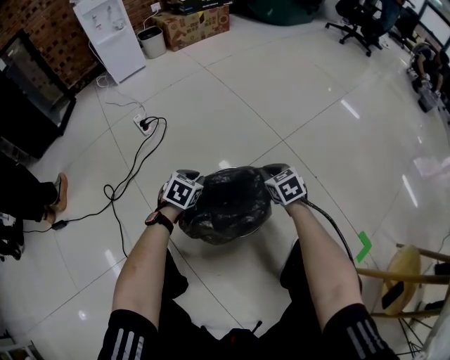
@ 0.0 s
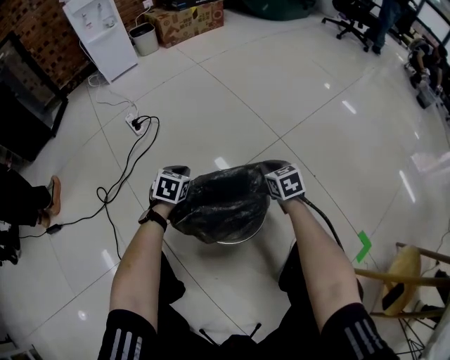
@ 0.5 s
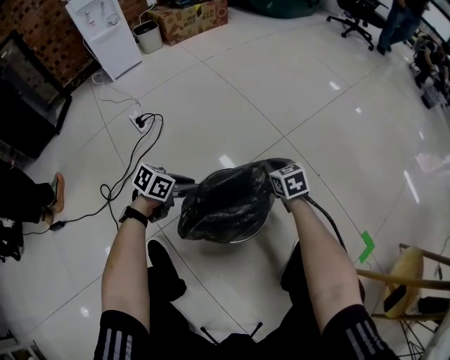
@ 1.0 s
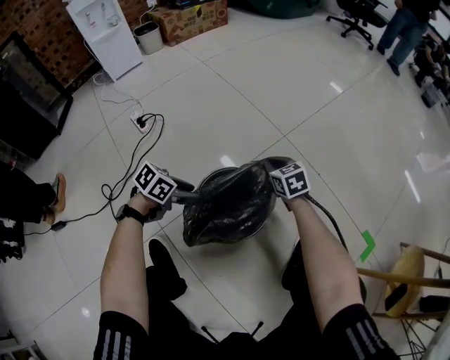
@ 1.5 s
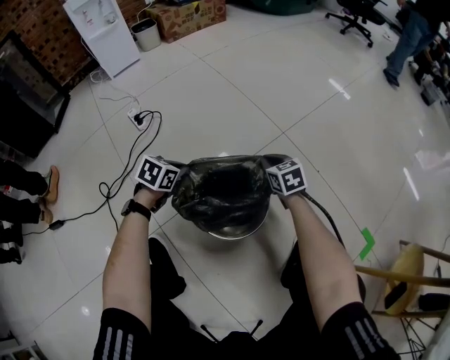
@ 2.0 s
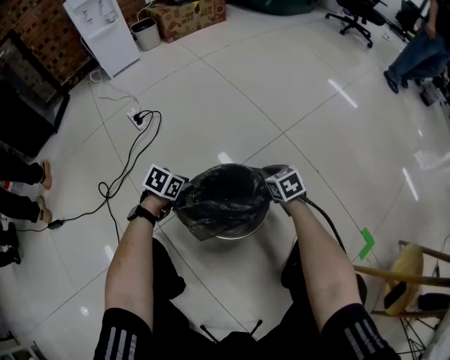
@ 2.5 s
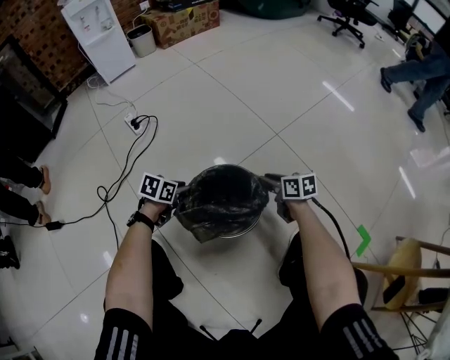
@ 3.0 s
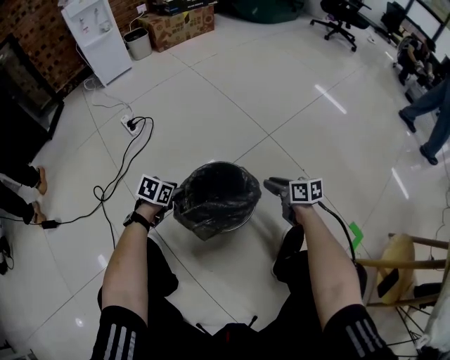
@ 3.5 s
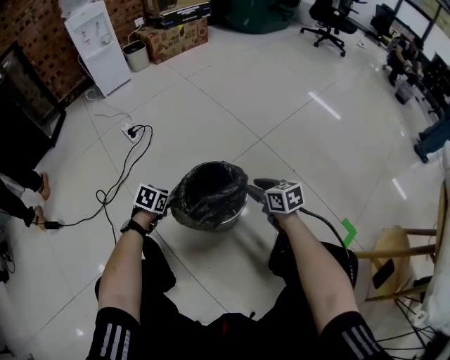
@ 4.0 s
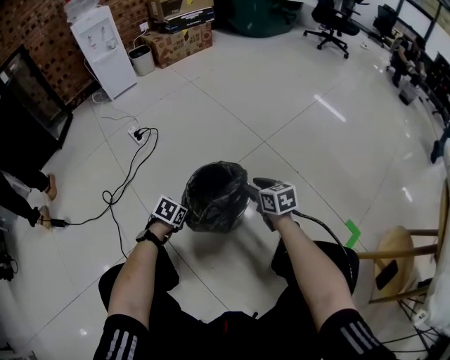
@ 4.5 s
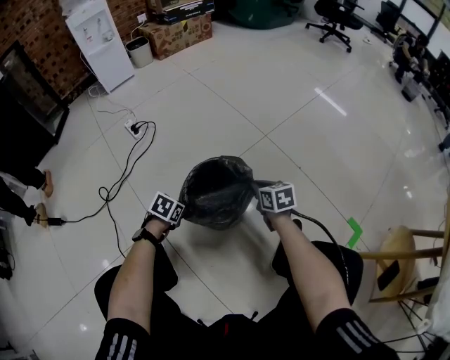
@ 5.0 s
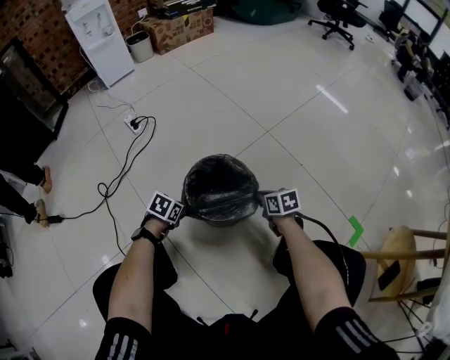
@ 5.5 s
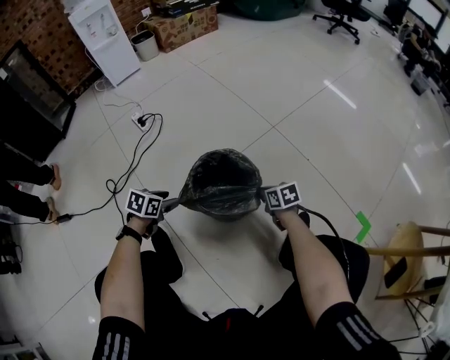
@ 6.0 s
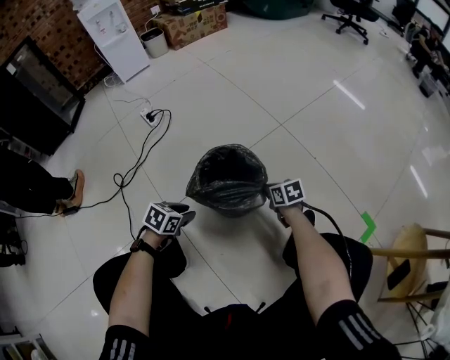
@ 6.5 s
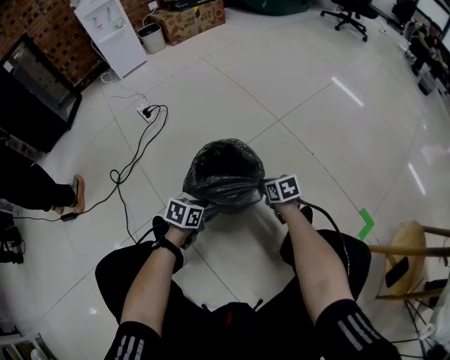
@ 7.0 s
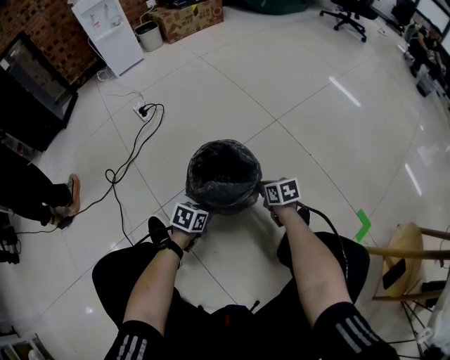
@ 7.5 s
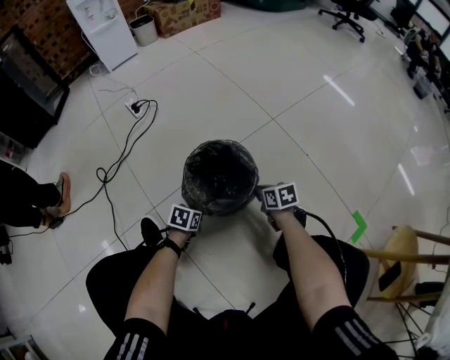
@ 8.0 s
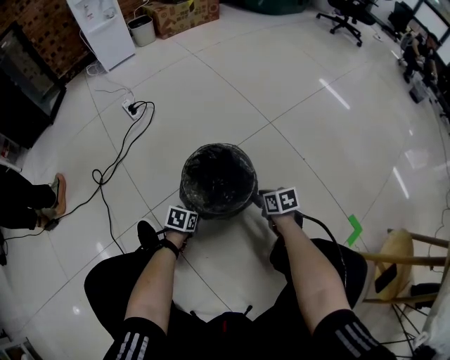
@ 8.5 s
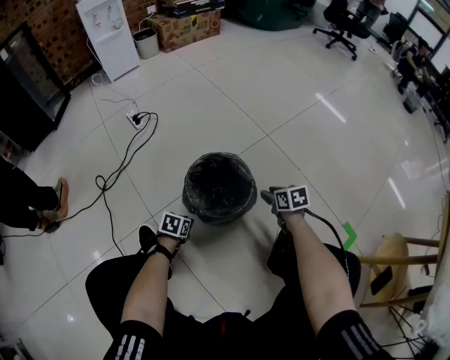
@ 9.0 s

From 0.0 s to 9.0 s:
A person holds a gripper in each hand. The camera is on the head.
From 0.0 s to 2.0 s: The left gripper opens and closes again.
From 2.0 s to 4.5 s: The right gripper goes approximately 15 cm backward and upward, and opens its fingers. Meanwhile the left gripper is displaced backward by some 15 cm, and opens up.
From 4.5 s to 7.0 s: The right gripper goes roughly 15 cm downward, and closes up. The left gripper is displaced to the right and backward by approximately 10 cm, and turns by approximately 20 degrees.
From 7.0 s to 9.0 s: The right gripper ends up approximately 5 cm from where it was, and opens up. The left gripper travels downward and to the left by approximately 10 cm, and closes its fingers.

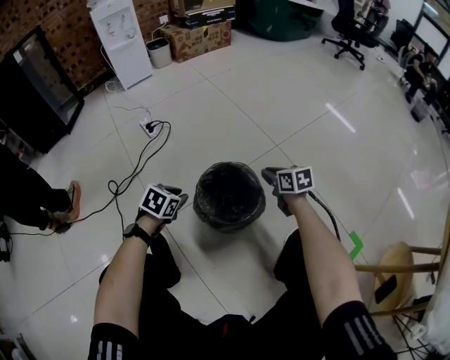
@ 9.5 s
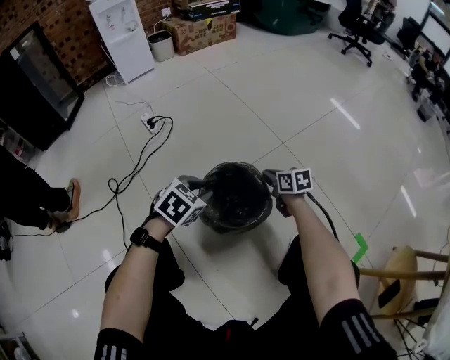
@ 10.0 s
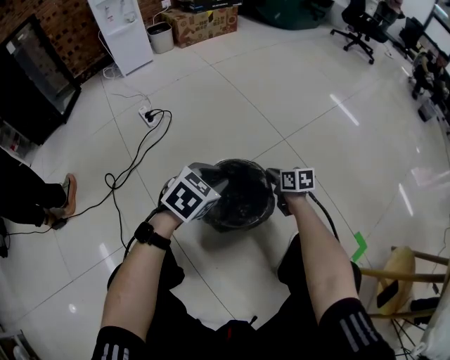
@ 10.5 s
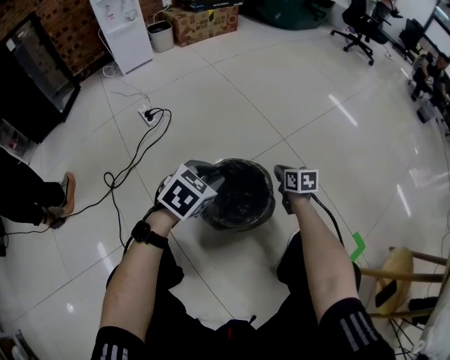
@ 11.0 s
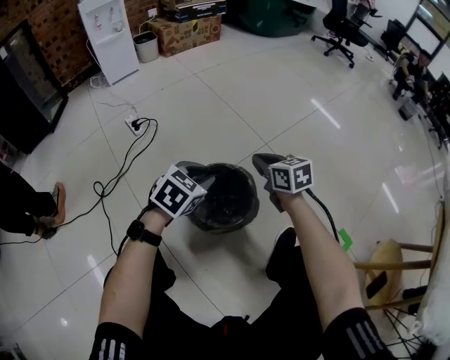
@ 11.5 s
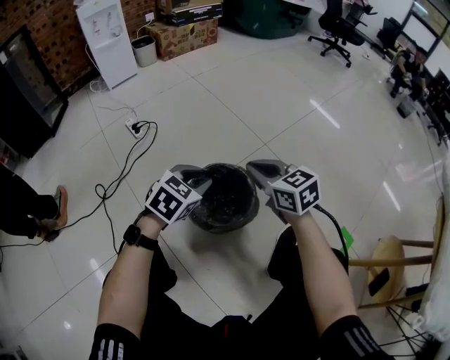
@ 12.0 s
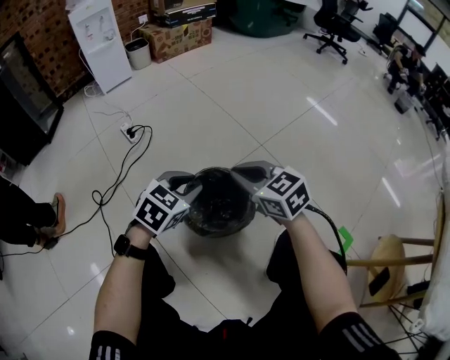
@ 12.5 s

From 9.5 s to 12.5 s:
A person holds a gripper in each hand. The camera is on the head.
From 9.5 s to 11.0 s: The right gripper travels downward by about 5 cm. Meanwhile the left gripper moves to the right and upward, roughly 15 cm.
From 11.0 s to 12.5 s: The right gripper goes approximately 30 cm upward, to the left and backward, and swivels roughly 40 degrees.

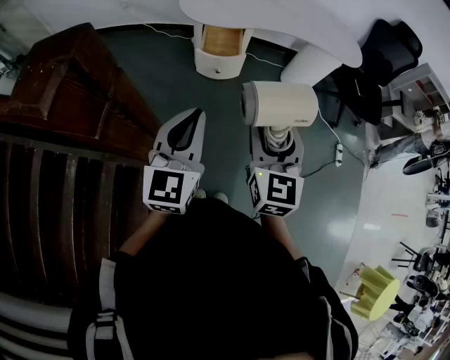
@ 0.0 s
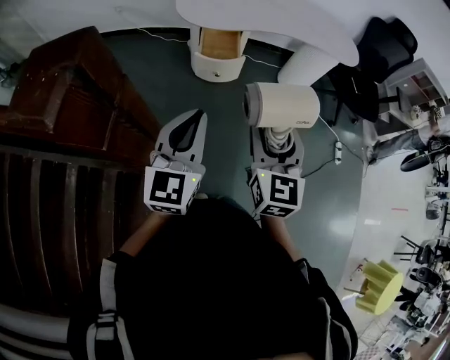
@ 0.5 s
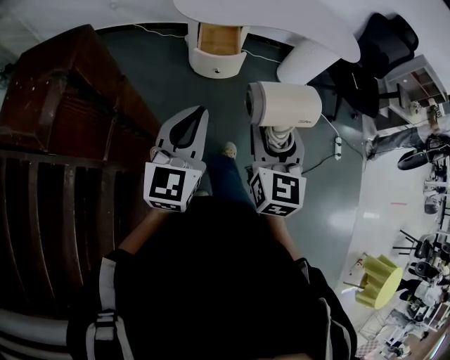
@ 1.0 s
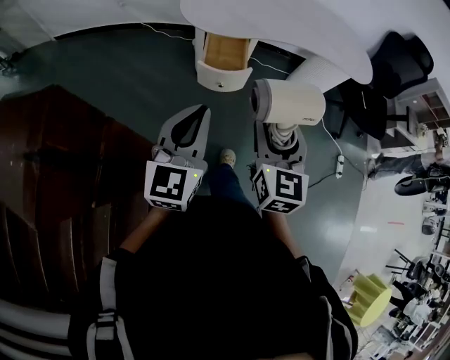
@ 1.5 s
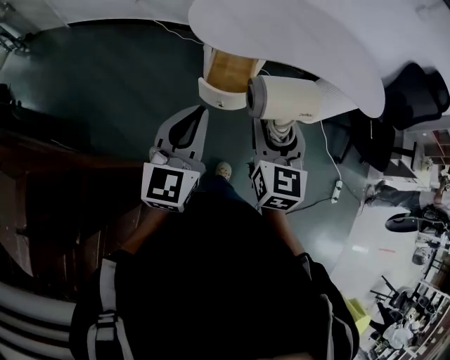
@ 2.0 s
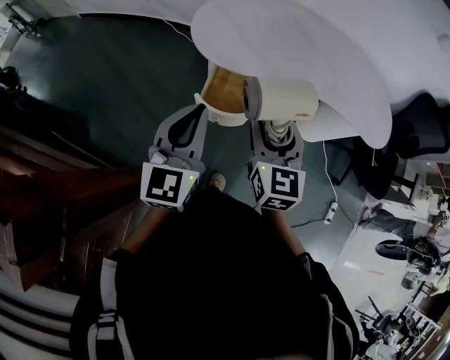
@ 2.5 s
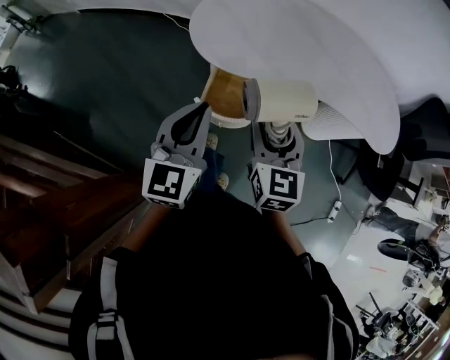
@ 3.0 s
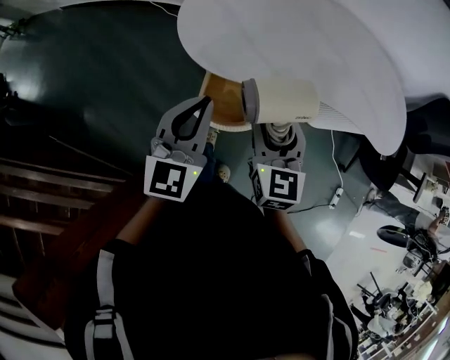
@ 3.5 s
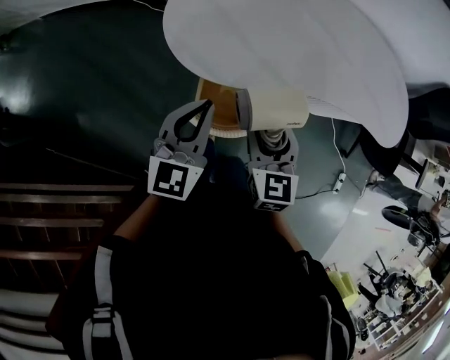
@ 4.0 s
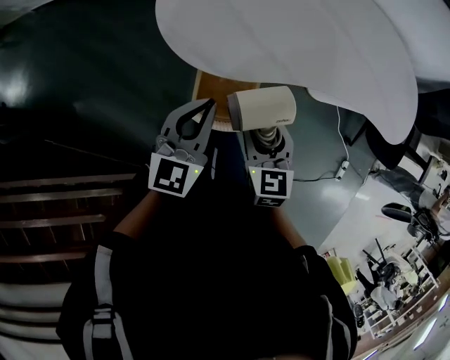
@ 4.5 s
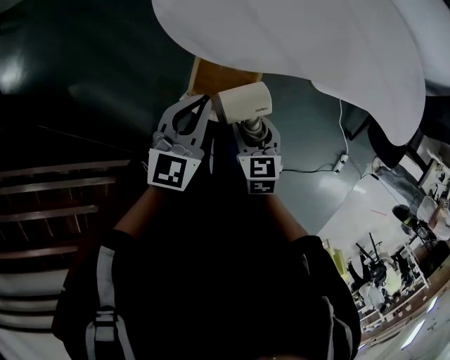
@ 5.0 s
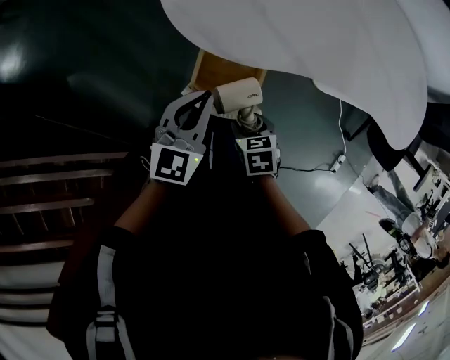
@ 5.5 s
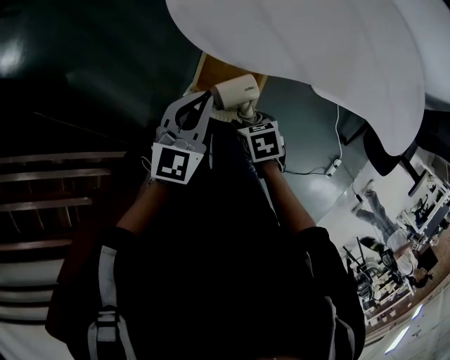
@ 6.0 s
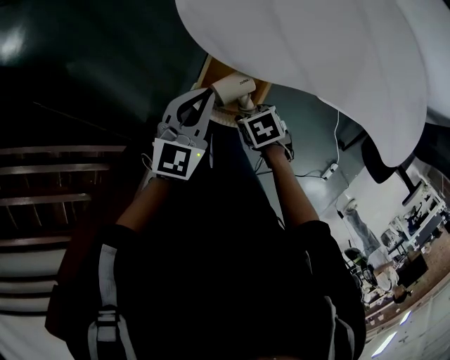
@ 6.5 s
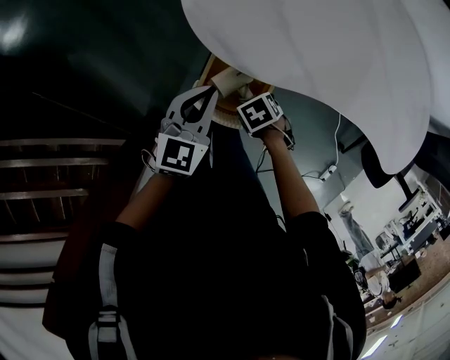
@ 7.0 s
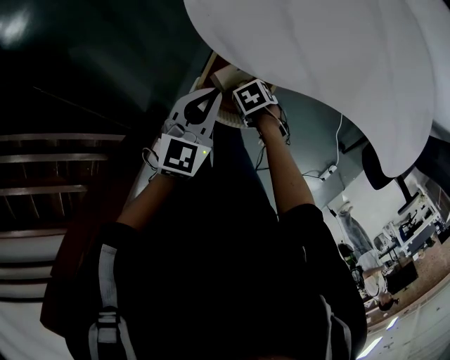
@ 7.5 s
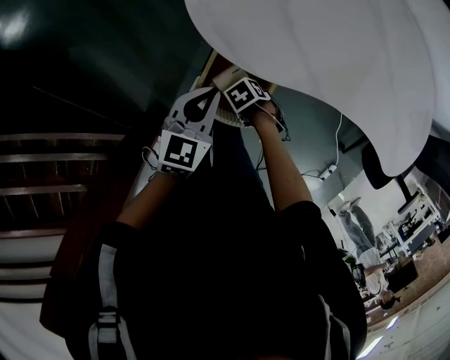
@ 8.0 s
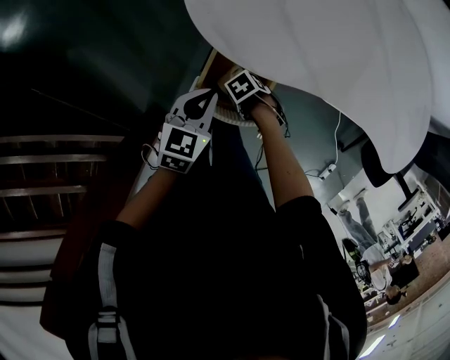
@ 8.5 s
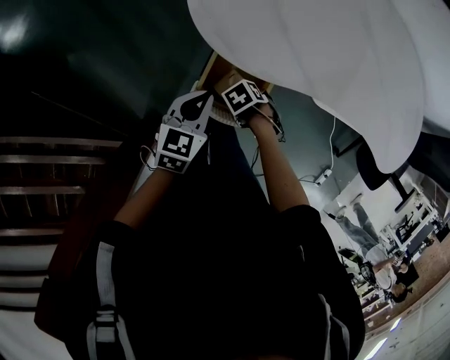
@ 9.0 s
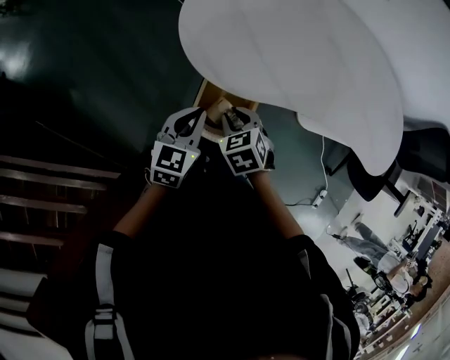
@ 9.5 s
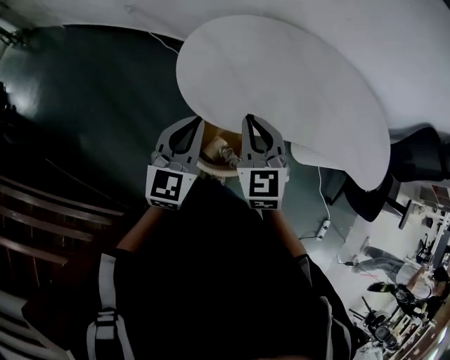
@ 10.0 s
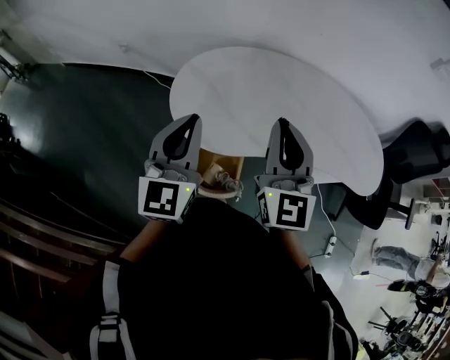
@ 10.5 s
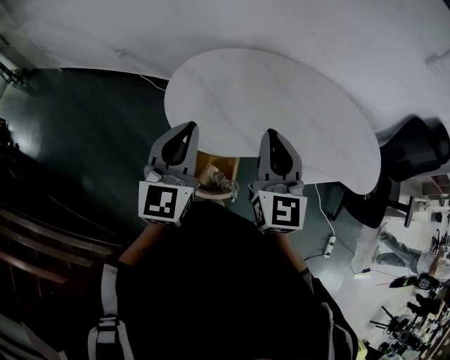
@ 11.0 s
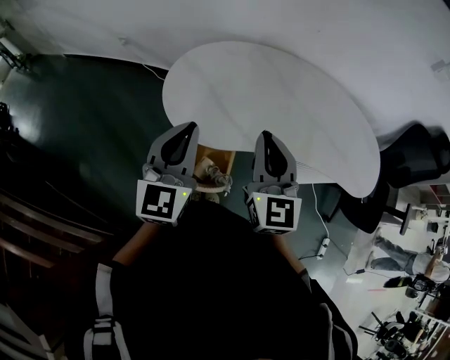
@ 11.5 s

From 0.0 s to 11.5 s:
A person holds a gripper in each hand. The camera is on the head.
From 0.0 s to 2.0 s: The grippers both shift forward by some 35 cm.
From 2.0 s to 4.0 s: The left gripper moves forward, approximately 40 cm, while the right gripper shifts roughly 35 cm forward and downward.
From 4.0 s to 6.0 s: The right gripper shifts about 25 cm downward, and tilts its fingers approximately 50 degrees downward, while the left gripper moves downward, roughly 15 cm.
From 6.0 s to 7.5 s: The right gripper travels downward by about 10 cm, and changes its angle by approximately 30 degrees. The left gripper goes roughly 5 cm downward.
From 7.5 s to 9.5 s: The right gripper is displaced upward by about 20 cm, swivels approximately 50 degrees, and closes its fingers; the left gripper heads upward, covering some 5 cm.
From 9.5 s to 11.5 s: The right gripper goes some 35 cm upward and to the right, and tilts its fingers roughly 60 degrees upward. The left gripper travels upward by approximately 25 cm, and swivels some 30 degrees.

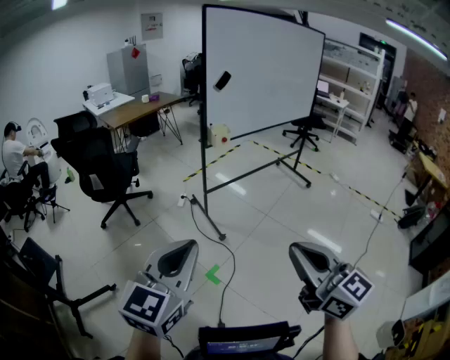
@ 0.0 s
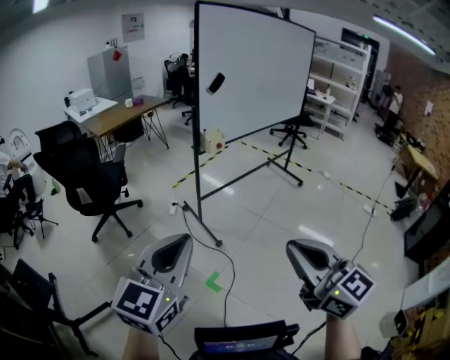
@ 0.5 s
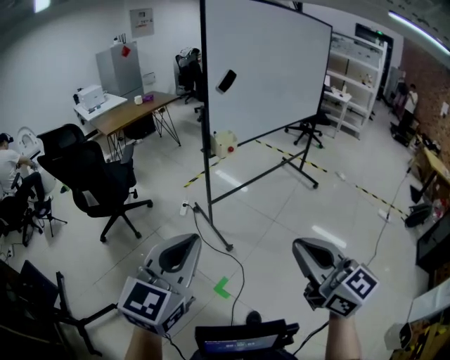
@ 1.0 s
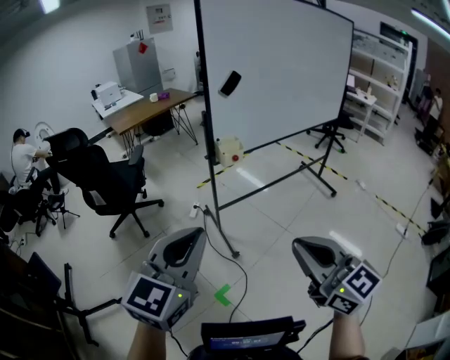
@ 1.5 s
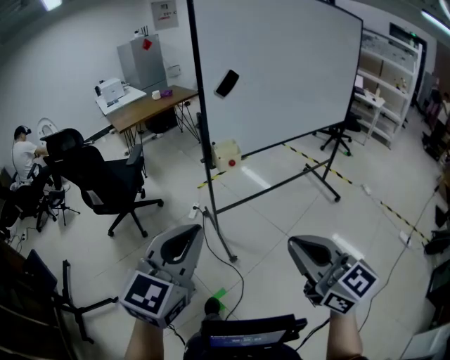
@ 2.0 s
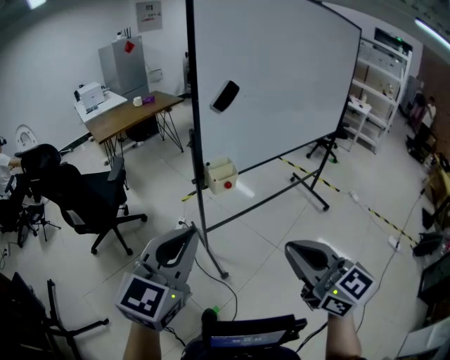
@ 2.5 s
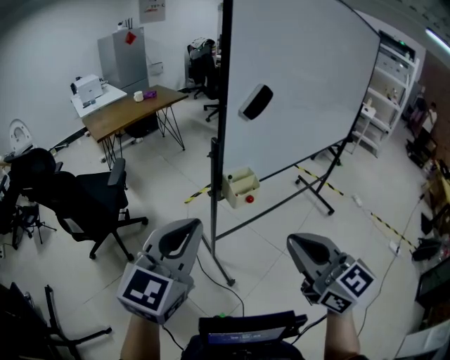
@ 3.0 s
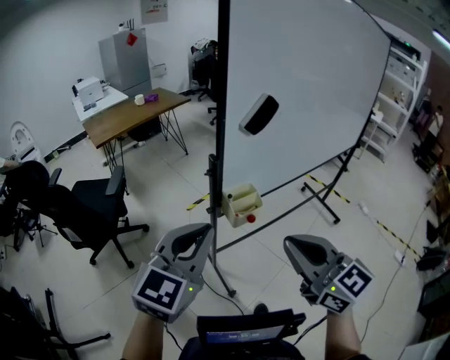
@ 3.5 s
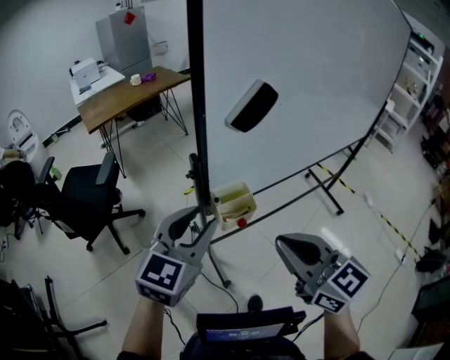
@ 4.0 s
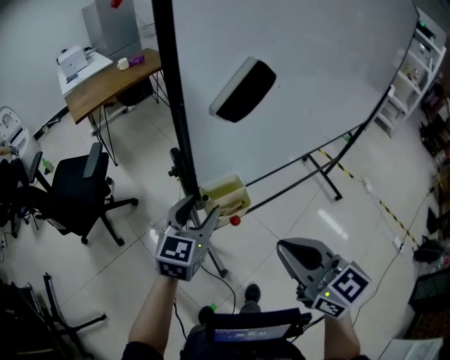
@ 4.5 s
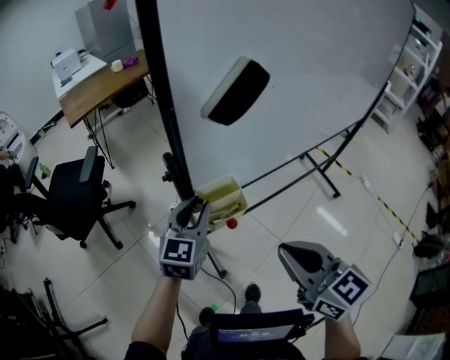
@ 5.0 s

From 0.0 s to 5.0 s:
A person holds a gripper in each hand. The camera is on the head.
From 0.0 s to 2.5 s: The pair of grippers is taken forward, roughly 40 cm.
From 2.5 s to 5.0 s: The right gripper is displaced forward by about 30 cm. Meanwhile the left gripper goes about 40 cm forward and downward, and opens its fingers.
